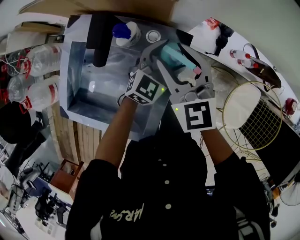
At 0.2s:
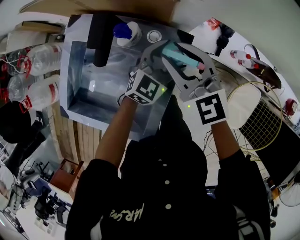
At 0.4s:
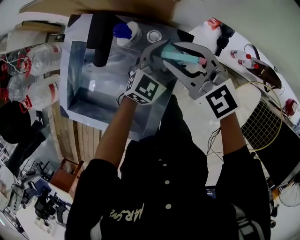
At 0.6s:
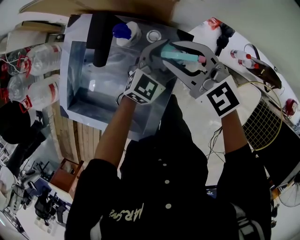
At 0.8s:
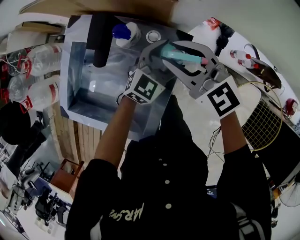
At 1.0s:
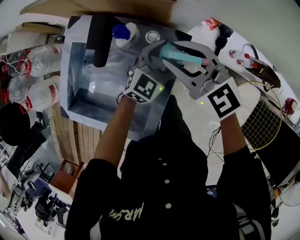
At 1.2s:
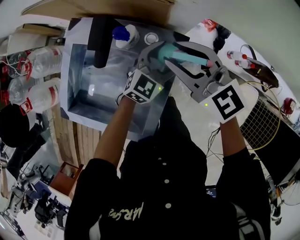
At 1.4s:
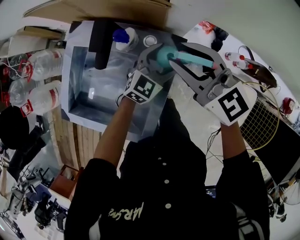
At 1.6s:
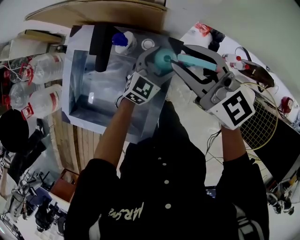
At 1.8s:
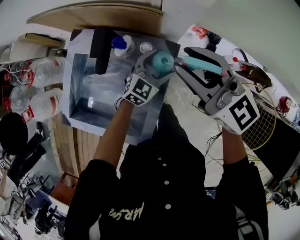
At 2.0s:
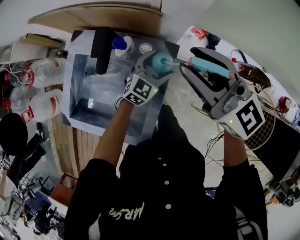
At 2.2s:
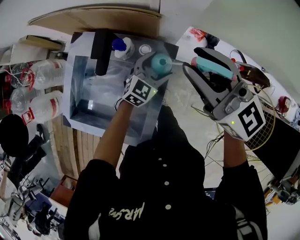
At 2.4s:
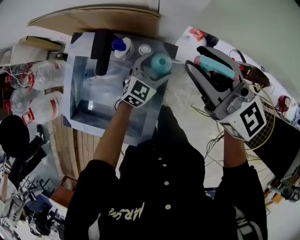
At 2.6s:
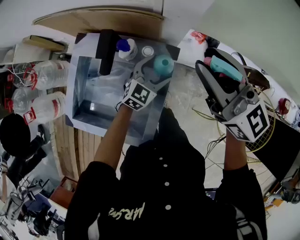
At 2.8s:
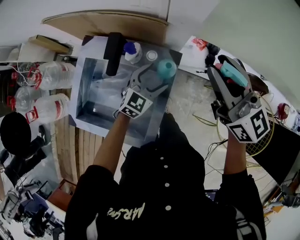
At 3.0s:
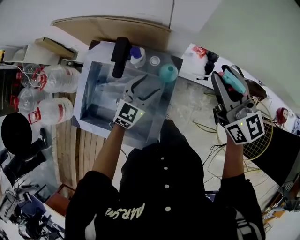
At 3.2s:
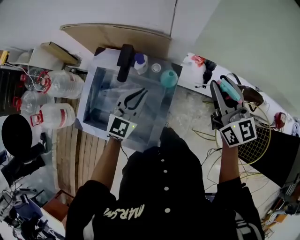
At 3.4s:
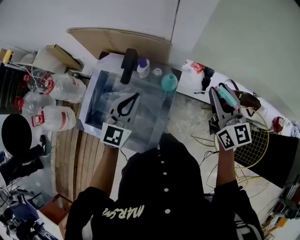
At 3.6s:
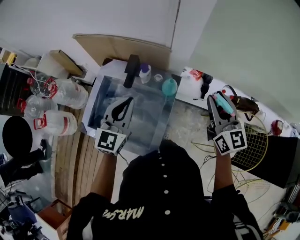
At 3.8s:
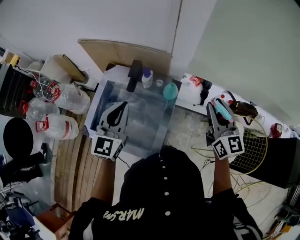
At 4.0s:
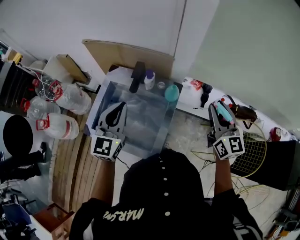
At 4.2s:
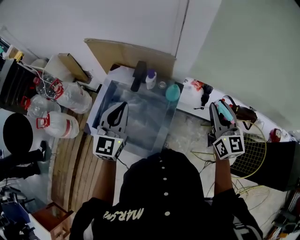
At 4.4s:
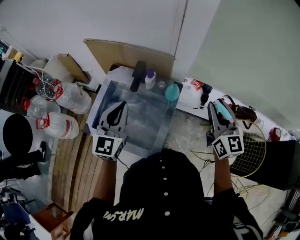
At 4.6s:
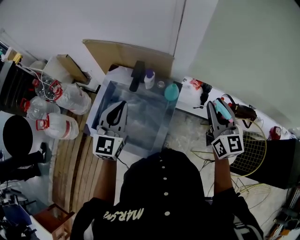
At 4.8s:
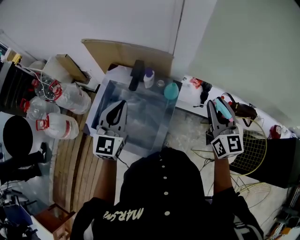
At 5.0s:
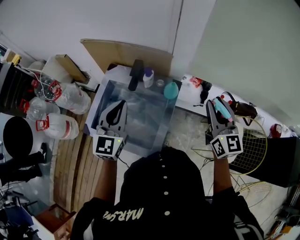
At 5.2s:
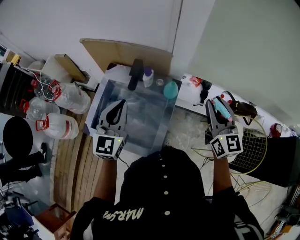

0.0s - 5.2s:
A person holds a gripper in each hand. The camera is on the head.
0.0s - 1.8s: The right gripper heads upward, covering about 15 cm, and rotates roughly 30 degrees.
1.8s - 3.4s: The left gripper moves upward, to the left and backward, some 30 cm, rotates about 30 degrees, and closes up, while the right gripper goes roughly 15 cm to the right and backward, and changes its angle by about 30 degrees.
3.4s - 5.2s: The right gripper heads backward, covering some 5 cm. The left gripper goes about 10 cm upward, to the left and backward.

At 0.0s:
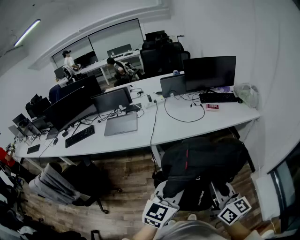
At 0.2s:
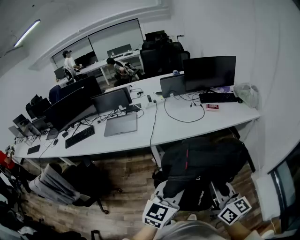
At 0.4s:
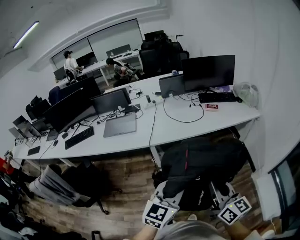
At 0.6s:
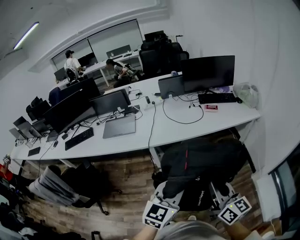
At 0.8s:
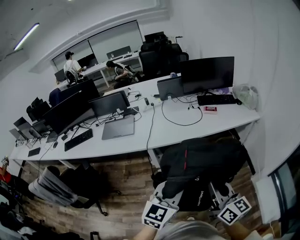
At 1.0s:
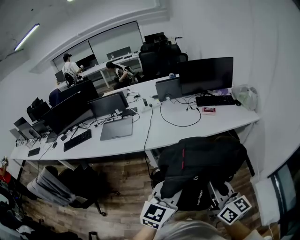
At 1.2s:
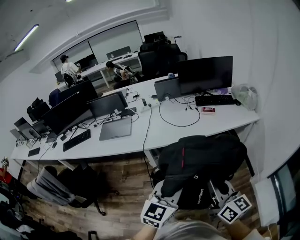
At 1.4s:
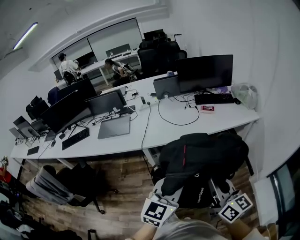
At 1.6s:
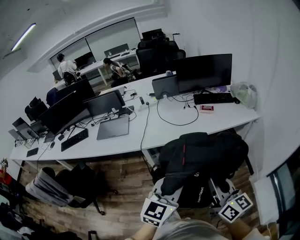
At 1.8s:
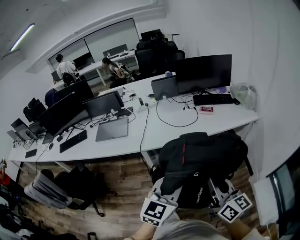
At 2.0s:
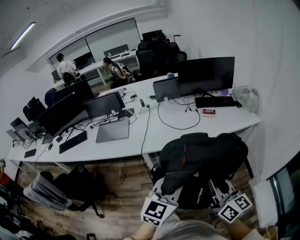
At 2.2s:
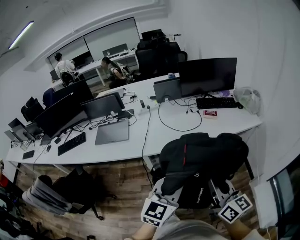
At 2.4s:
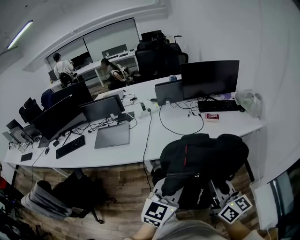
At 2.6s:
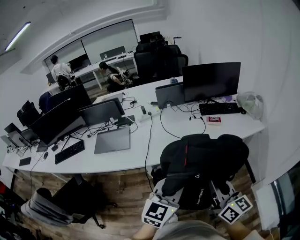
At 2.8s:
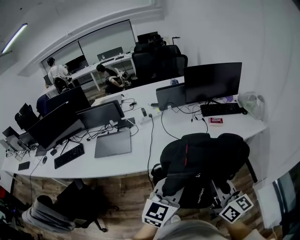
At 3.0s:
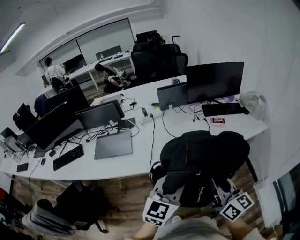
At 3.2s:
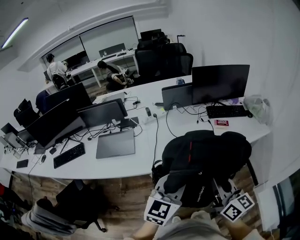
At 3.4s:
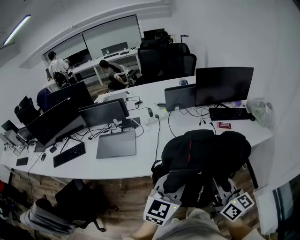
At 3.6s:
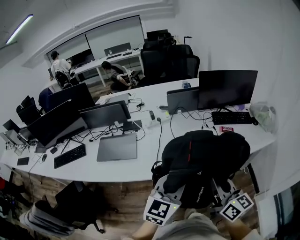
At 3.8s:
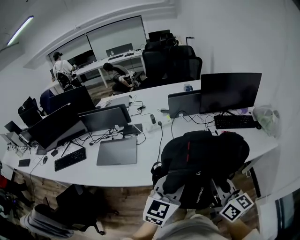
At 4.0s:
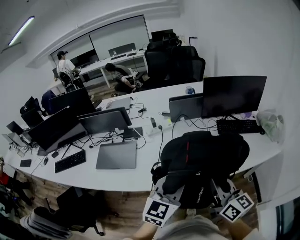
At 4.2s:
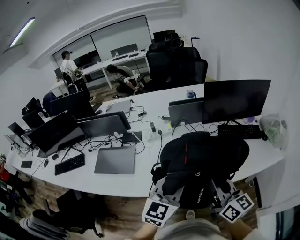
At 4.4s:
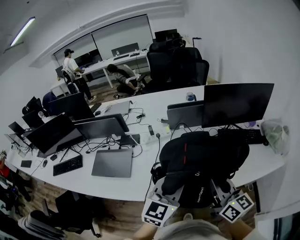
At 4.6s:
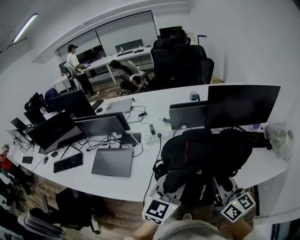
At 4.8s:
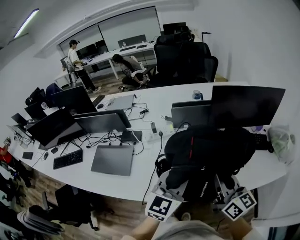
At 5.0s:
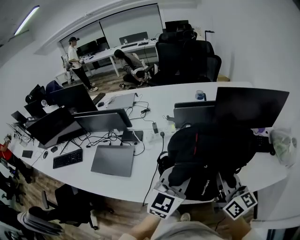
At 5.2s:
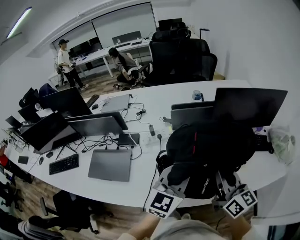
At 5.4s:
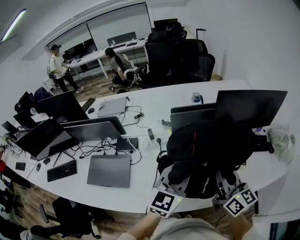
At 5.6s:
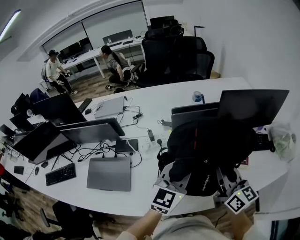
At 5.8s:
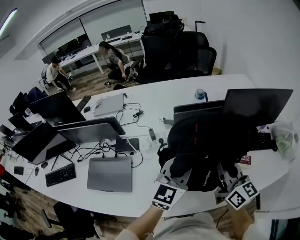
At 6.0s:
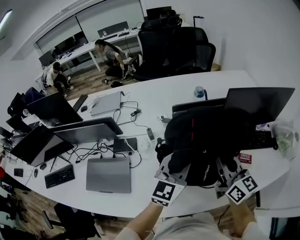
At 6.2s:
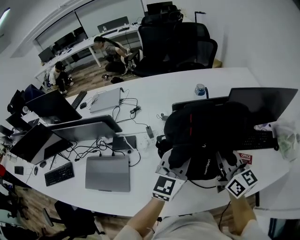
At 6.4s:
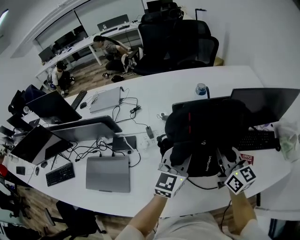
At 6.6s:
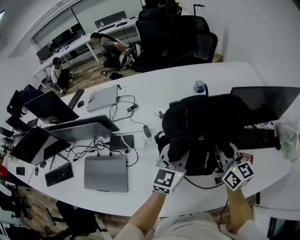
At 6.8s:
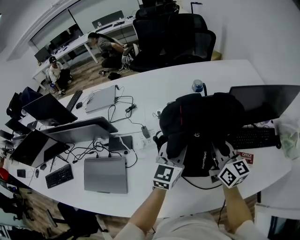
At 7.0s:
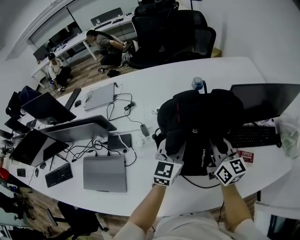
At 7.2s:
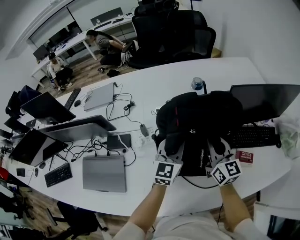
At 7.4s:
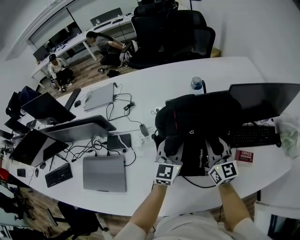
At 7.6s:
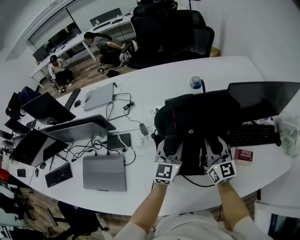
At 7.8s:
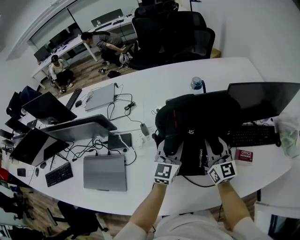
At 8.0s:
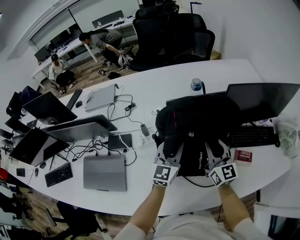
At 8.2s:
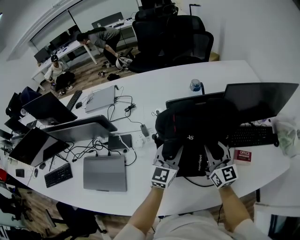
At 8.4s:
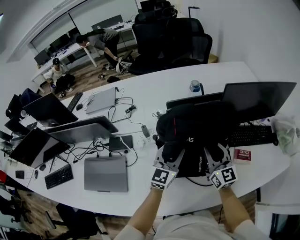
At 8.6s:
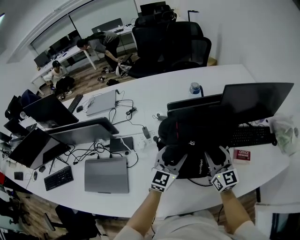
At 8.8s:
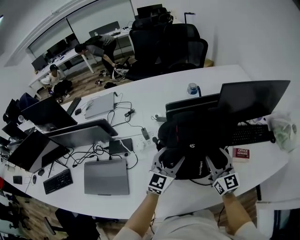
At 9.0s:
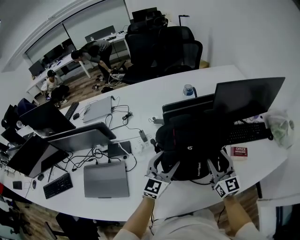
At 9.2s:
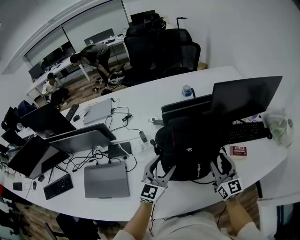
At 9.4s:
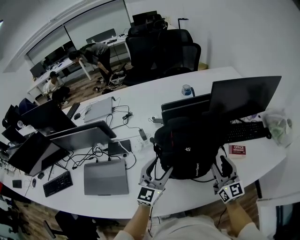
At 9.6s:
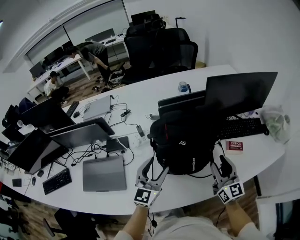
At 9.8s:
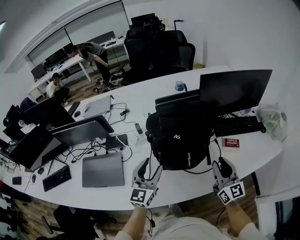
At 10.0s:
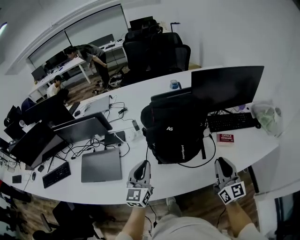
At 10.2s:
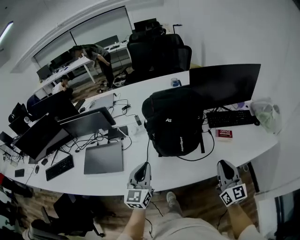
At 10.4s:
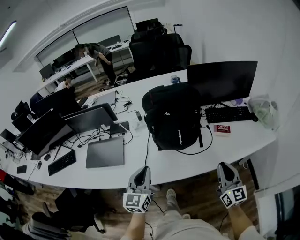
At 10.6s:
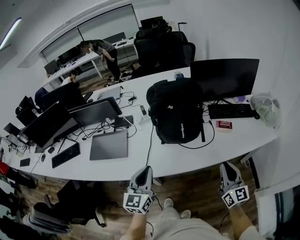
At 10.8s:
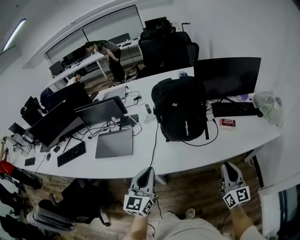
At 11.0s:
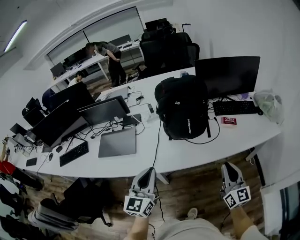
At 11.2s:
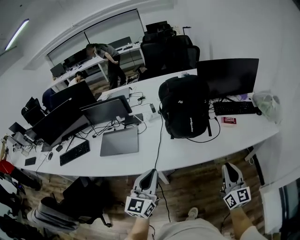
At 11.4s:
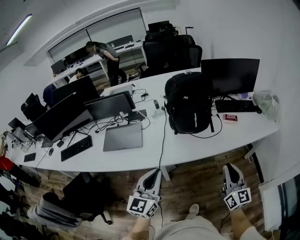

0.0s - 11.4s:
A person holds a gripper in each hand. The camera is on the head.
0.0s - 1.4s: Both grippers travel together to the right and forward, some 10 cm.
1.4s - 2.8s: The grippers both shift forward and to the left by approximately 20 cm.
2.8s - 4.2s: Both grippers move forward, about 25 cm.
4.2s - 5.6s: Both grippers travel together forward, some 25 cm.
5.6s - 7.2s: The two grippers go about 20 cm forward and downward.
7.2s - 8.6s: Both grippers move backward, approximately 5 cm. The right gripper opens; the left gripper opens.
8.6s - 10.0s: The left gripper heads backward, covering some 20 cm, and closes up, while the right gripper goes some 25 cm backward and to the right, and closes its fingers.
10.0s - 11.4s: Both grippers travel together backward, roughly 30 cm.

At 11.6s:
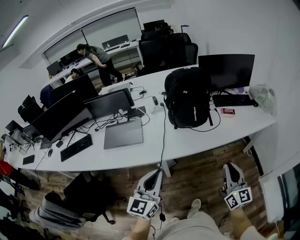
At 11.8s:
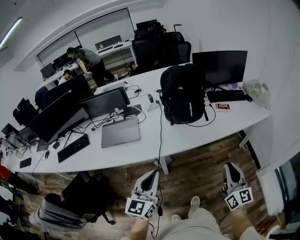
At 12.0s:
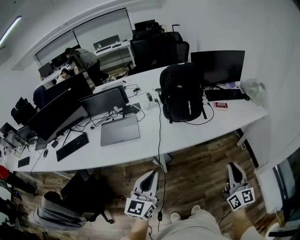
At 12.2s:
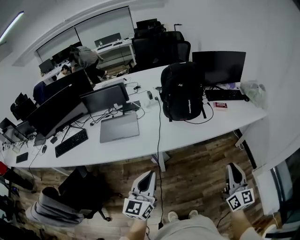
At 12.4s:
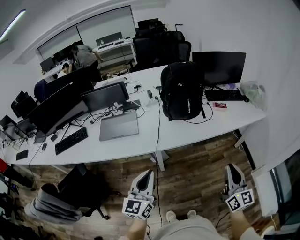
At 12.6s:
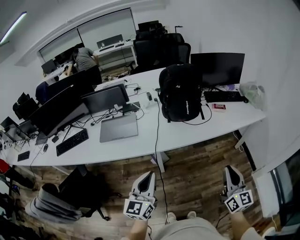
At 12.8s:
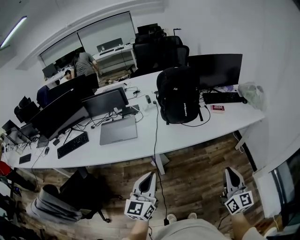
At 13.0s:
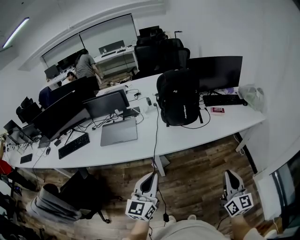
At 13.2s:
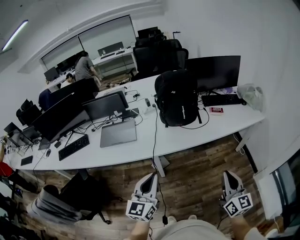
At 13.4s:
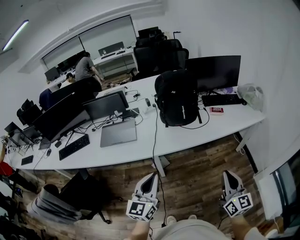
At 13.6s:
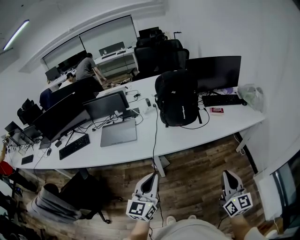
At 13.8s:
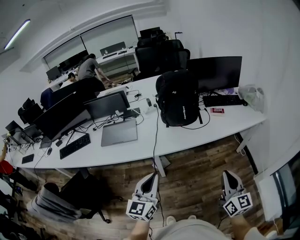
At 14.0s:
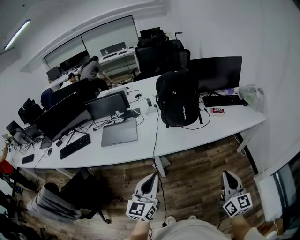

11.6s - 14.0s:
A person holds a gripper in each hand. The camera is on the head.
11.6s - 12.8s: The two grippers go roughly 10 cm backward.
12.8s - 14.0s: The grippers make only small movements.

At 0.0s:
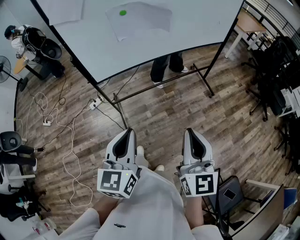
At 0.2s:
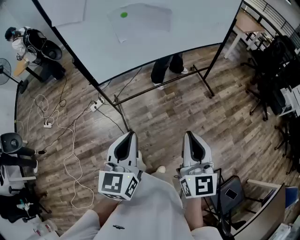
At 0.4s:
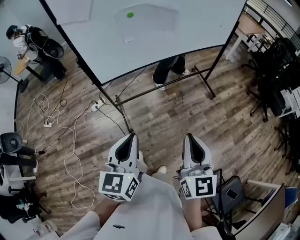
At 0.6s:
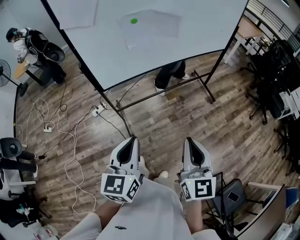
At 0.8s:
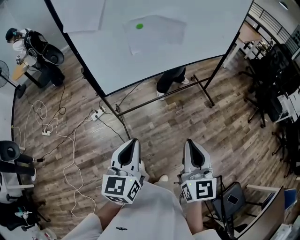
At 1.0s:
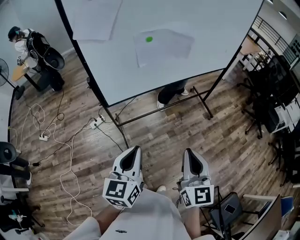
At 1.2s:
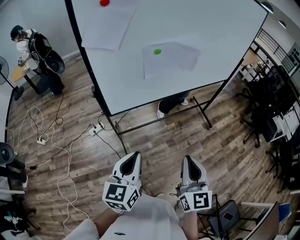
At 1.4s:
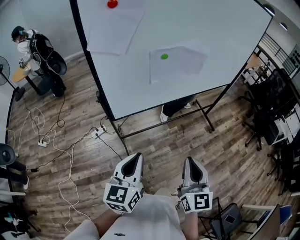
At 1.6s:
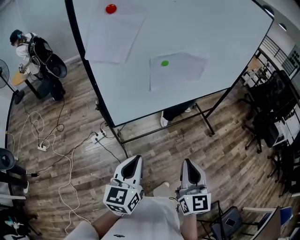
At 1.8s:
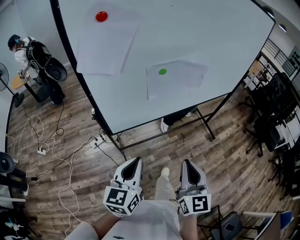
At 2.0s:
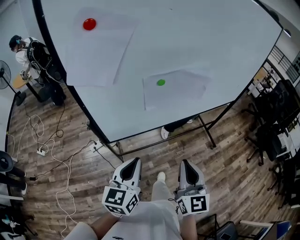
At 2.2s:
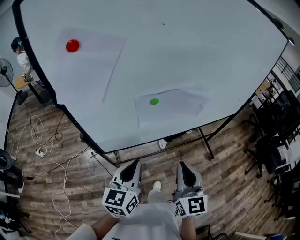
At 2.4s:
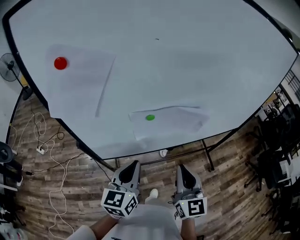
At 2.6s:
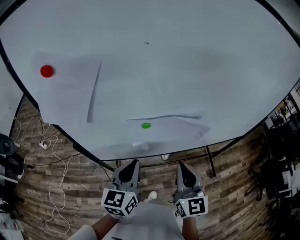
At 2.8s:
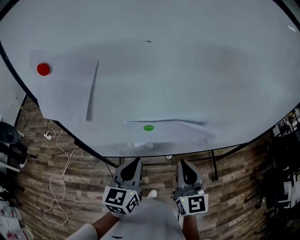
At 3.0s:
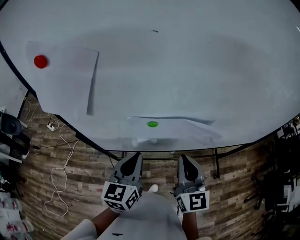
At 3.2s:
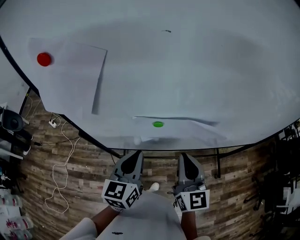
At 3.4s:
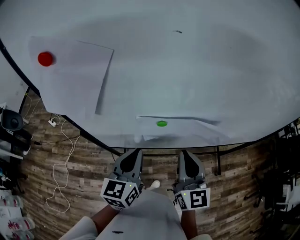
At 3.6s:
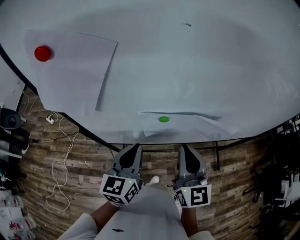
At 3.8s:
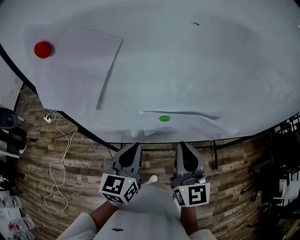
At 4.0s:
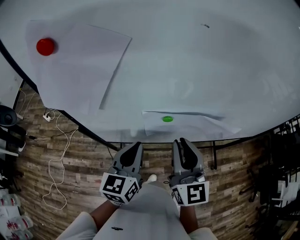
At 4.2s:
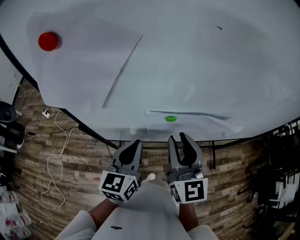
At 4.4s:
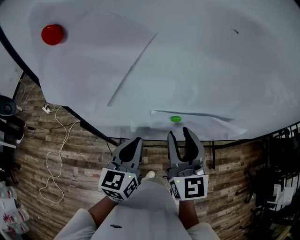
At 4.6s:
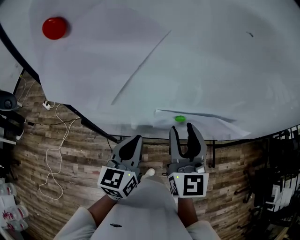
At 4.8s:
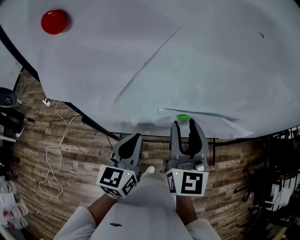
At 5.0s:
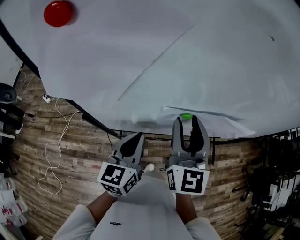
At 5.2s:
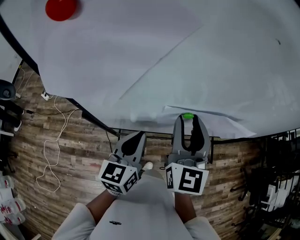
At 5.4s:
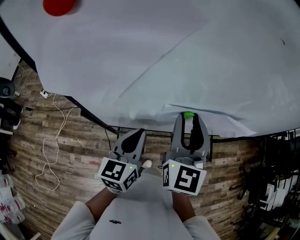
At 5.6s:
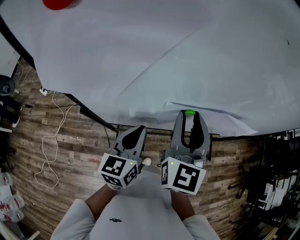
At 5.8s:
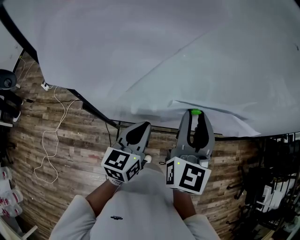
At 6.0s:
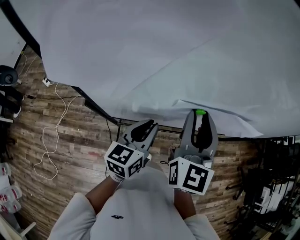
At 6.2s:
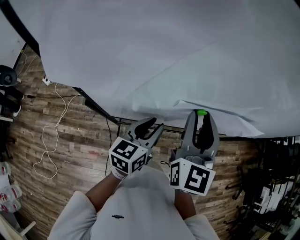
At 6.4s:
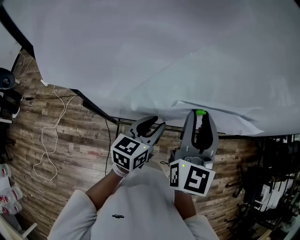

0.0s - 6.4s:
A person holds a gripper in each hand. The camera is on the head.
0.0s - 1.6s: Both grippers move to the left and forward, some 20 cm.
1.6s - 3.2s: The grippers both shift forward by roughly 30 cm. The left gripper swivels roughly 20 degrees, while the right gripper changes its angle by approximately 30 degrees.
3.2s - 4.8s: The left gripper shifts approximately 5 cm to the left, while the right gripper goes approximately 10 cm to the left and upward, and opens.
4.8s - 6.4s: The left gripper moves downward, some 5 cm, and opens up.
